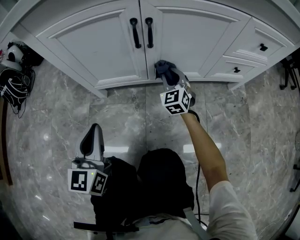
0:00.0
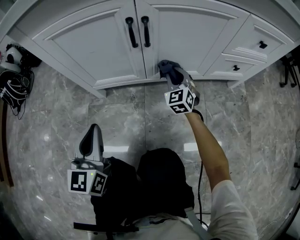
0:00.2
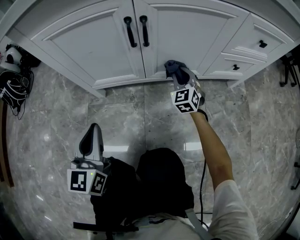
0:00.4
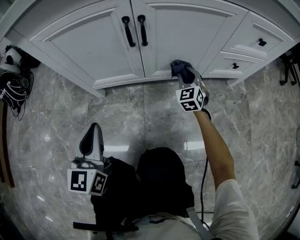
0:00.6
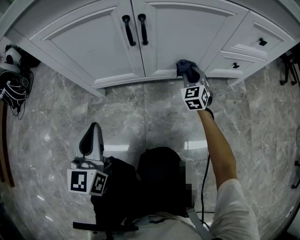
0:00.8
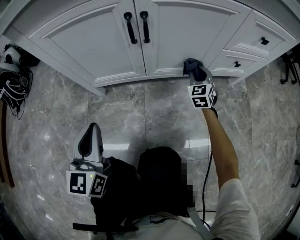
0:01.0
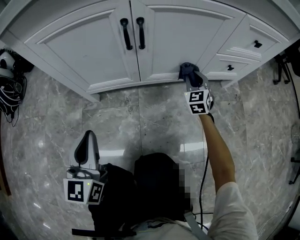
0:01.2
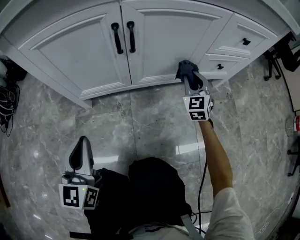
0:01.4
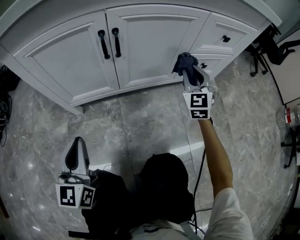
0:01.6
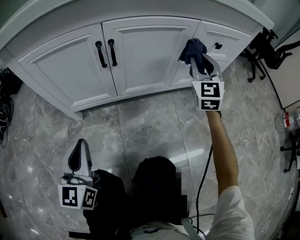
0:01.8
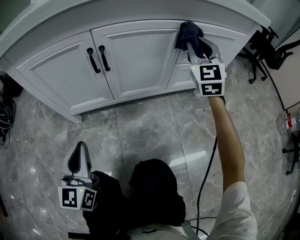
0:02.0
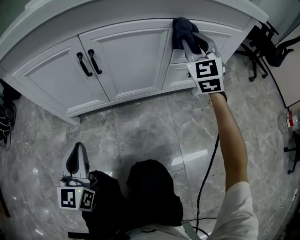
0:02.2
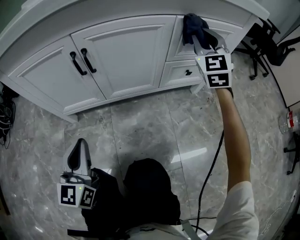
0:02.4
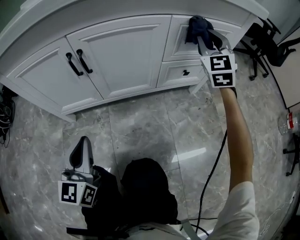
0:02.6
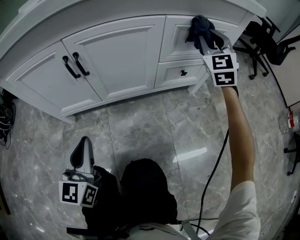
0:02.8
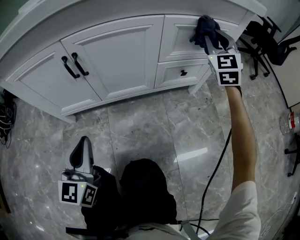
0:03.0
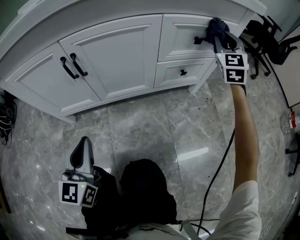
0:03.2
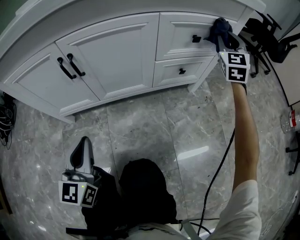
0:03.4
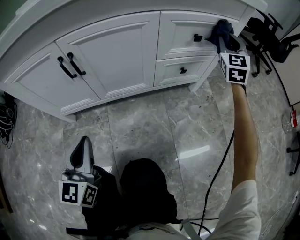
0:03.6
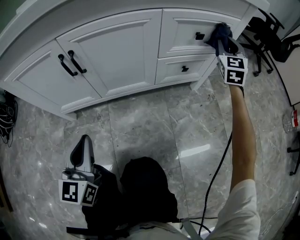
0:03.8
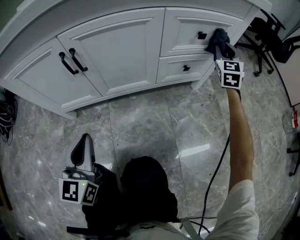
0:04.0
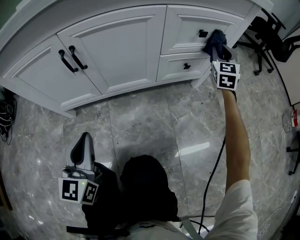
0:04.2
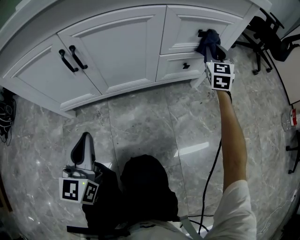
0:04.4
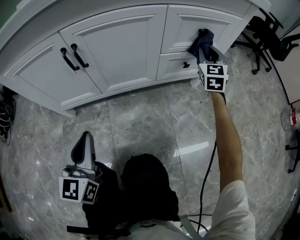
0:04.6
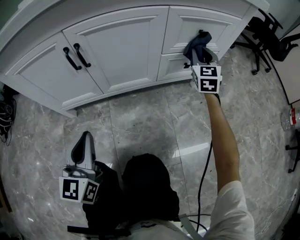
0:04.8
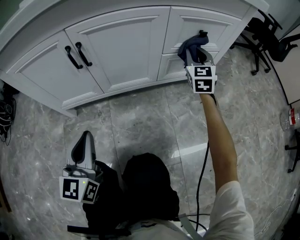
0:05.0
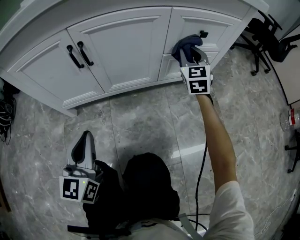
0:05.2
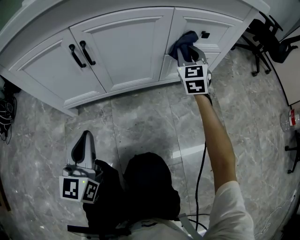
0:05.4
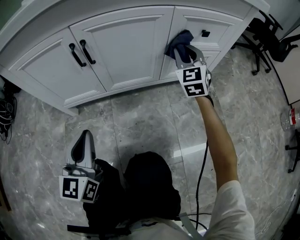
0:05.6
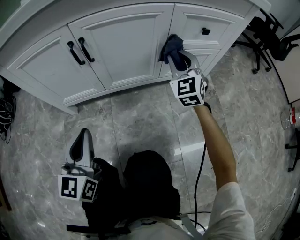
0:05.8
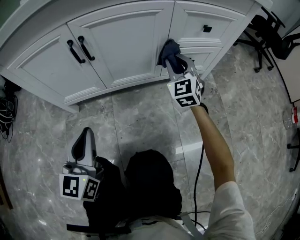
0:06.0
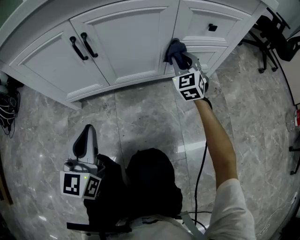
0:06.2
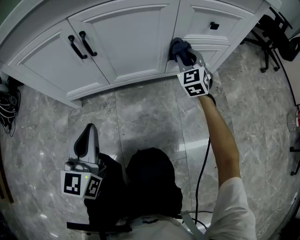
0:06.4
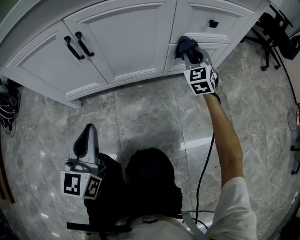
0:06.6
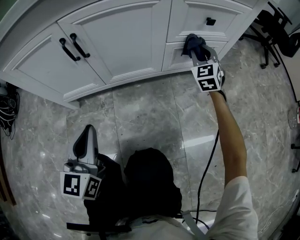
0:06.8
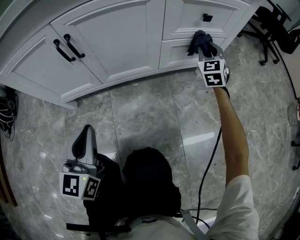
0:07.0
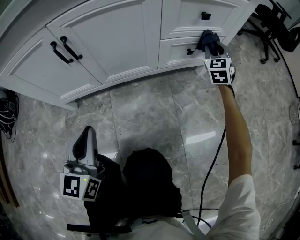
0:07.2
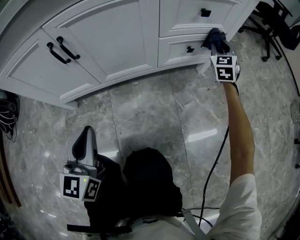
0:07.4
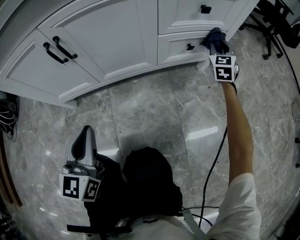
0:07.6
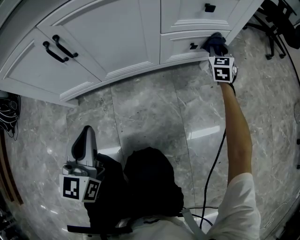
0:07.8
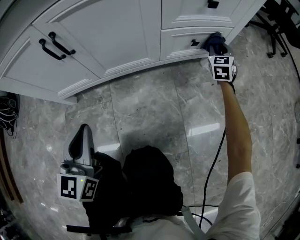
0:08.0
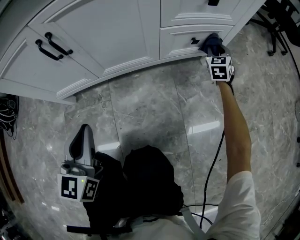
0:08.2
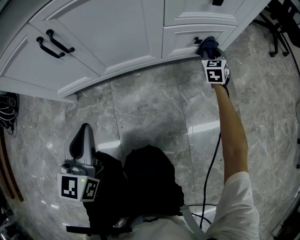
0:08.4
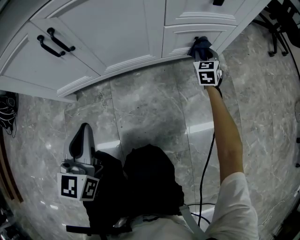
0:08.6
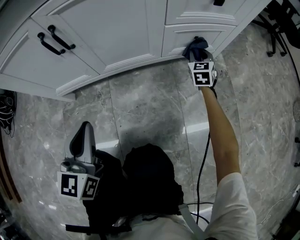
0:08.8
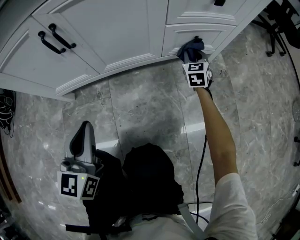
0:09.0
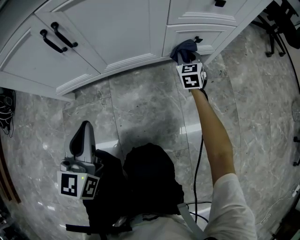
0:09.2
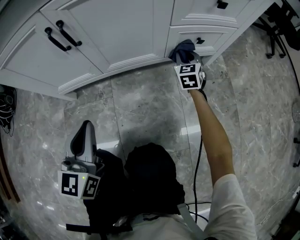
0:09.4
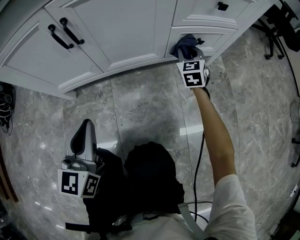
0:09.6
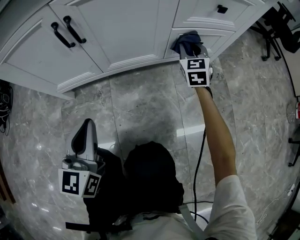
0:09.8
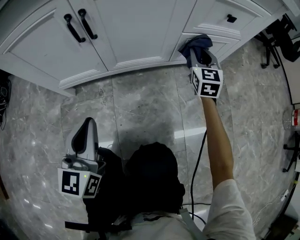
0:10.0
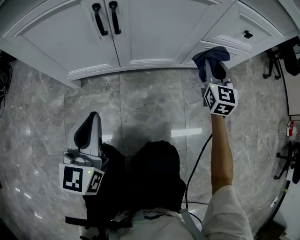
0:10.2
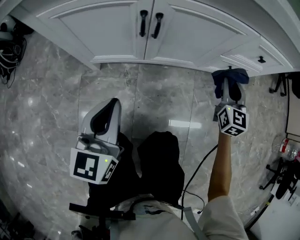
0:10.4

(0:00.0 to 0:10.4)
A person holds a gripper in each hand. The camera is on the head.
0:00.0 - 0:01.4: The right gripper moves to the right, about 15 cm.
0:01.4 - 0:03.0: The left gripper is displaced to the right by about 15 cm, while the right gripper heads upward and to the right, covering about 30 cm.
0:03.0 - 0:04.4: The right gripper shifts roughly 10 cm downward.
0:04.4 - 0:06.0: The right gripper heads to the left and backward, covering roughly 20 cm.
0:06.0 - 0:07.4: The right gripper heads to the right, covering roughly 20 cm, and changes its angle by some 20 degrees.
0:07.4 - 0:09.0: The right gripper shifts roughly 20 cm downward and to the left.
0:09.0 - 0:10.4: The left gripper moves upward and to the left, roughly 15 cm, while the right gripper heads upward and backward, covering roughly 25 cm.

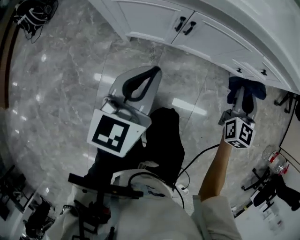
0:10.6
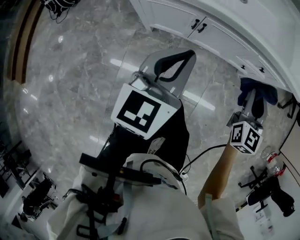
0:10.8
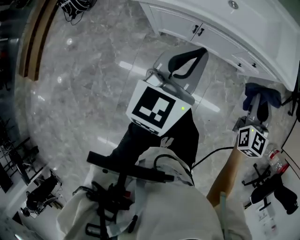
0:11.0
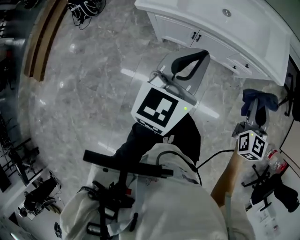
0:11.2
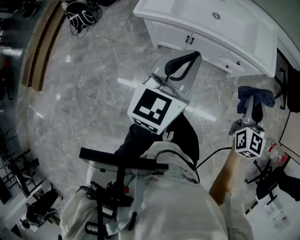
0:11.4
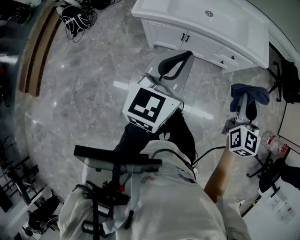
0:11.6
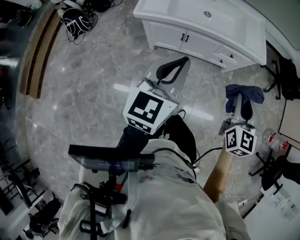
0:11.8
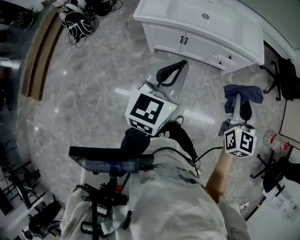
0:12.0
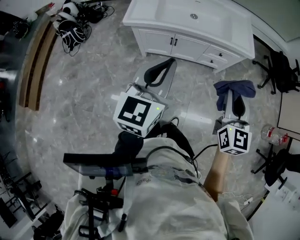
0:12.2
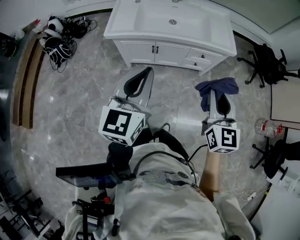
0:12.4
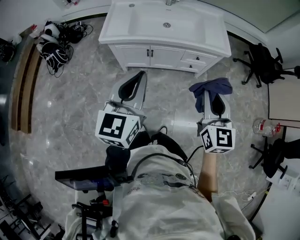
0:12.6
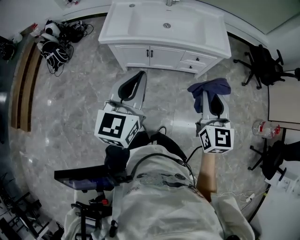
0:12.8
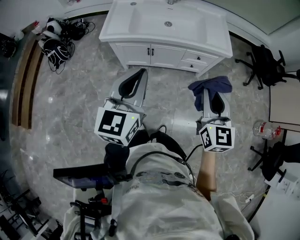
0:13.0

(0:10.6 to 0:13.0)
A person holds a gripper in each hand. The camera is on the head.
0:10.6 - 0:11.8: The left gripper is displaced upward by roughly 50 cm. Meanwhile the right gripper heads upward and backward, covering some 60 cm.
0:11.8 - 0:13.0: The left gripper goes approximately 5 cm to the right.

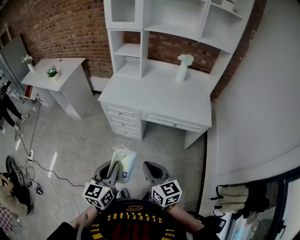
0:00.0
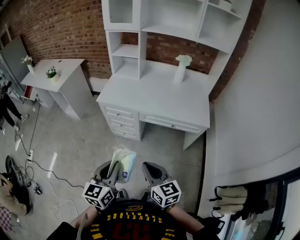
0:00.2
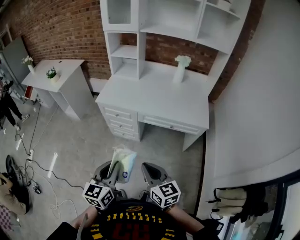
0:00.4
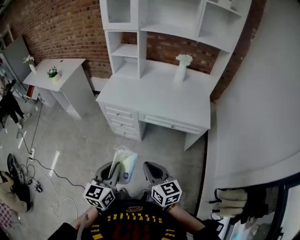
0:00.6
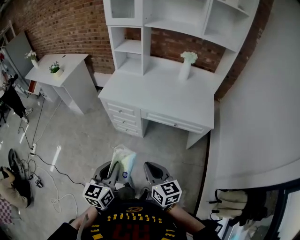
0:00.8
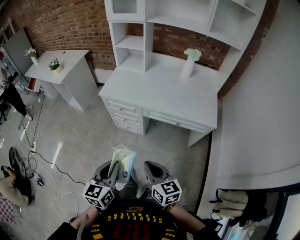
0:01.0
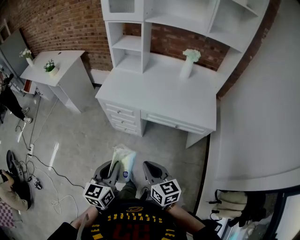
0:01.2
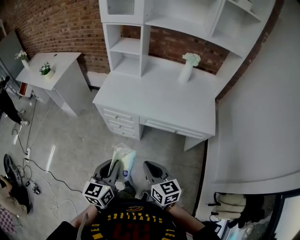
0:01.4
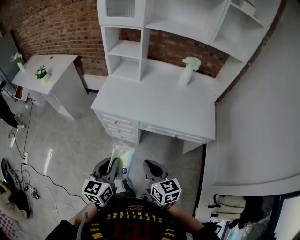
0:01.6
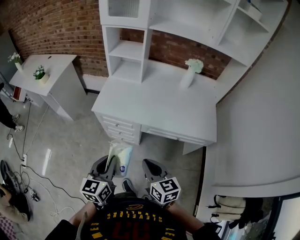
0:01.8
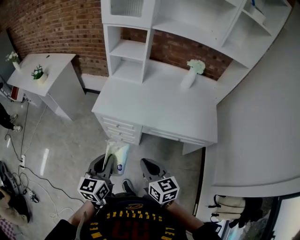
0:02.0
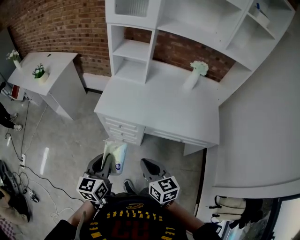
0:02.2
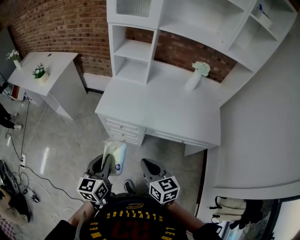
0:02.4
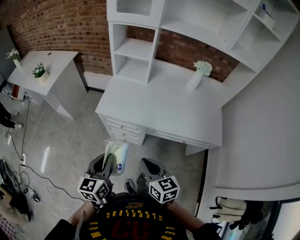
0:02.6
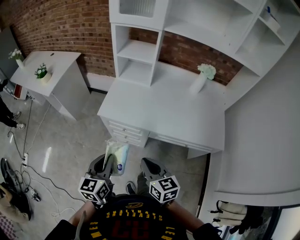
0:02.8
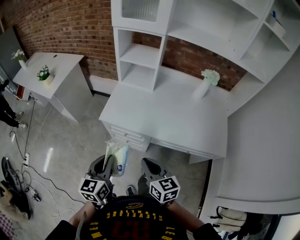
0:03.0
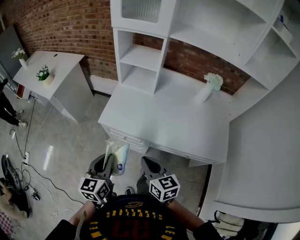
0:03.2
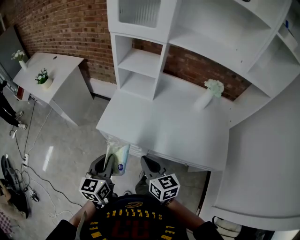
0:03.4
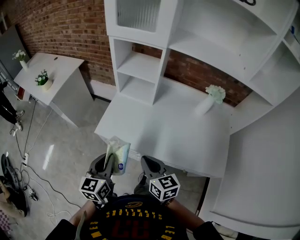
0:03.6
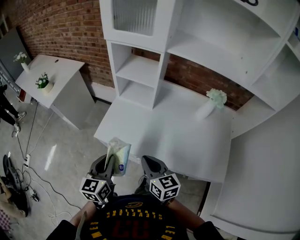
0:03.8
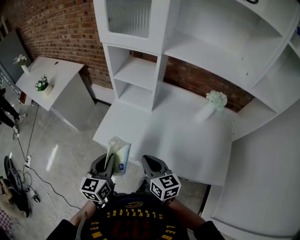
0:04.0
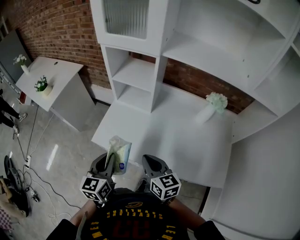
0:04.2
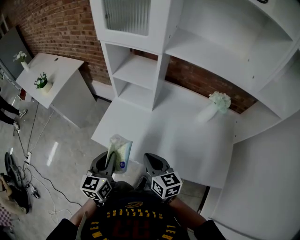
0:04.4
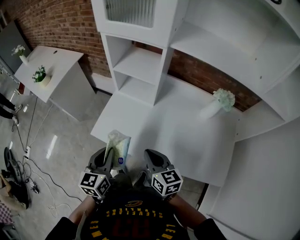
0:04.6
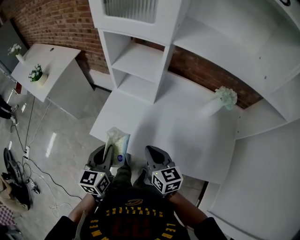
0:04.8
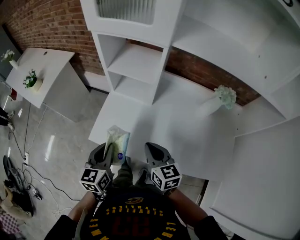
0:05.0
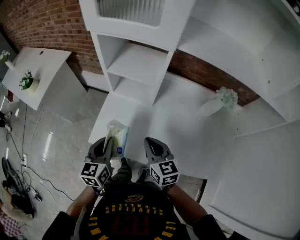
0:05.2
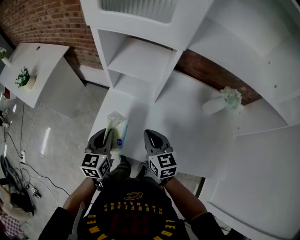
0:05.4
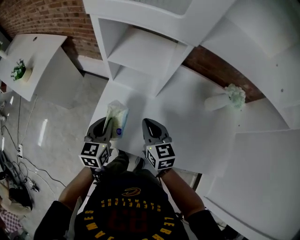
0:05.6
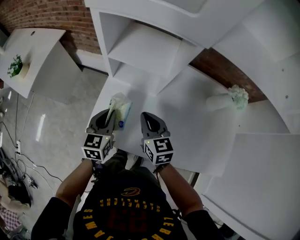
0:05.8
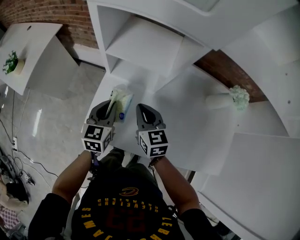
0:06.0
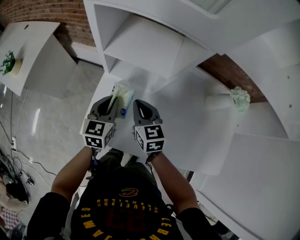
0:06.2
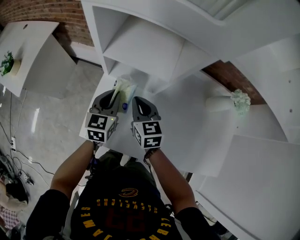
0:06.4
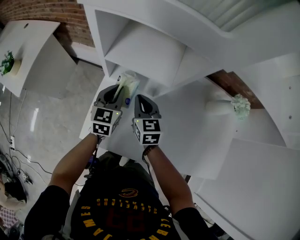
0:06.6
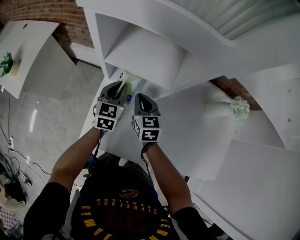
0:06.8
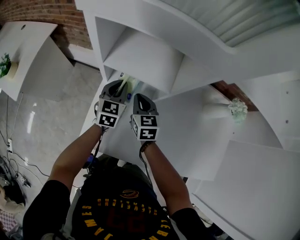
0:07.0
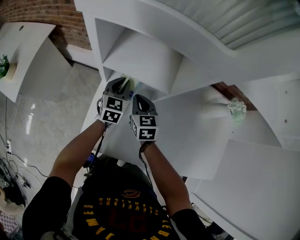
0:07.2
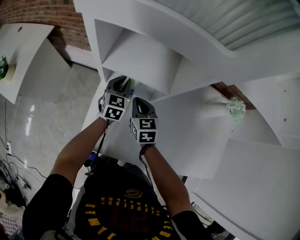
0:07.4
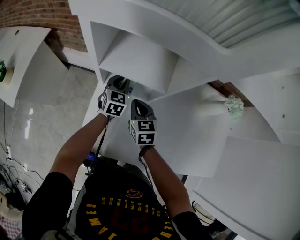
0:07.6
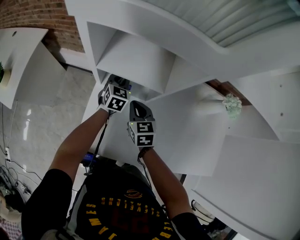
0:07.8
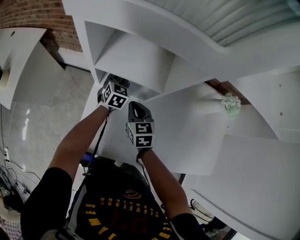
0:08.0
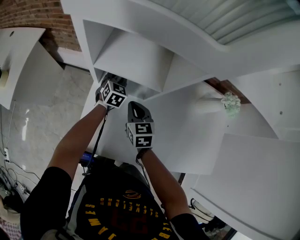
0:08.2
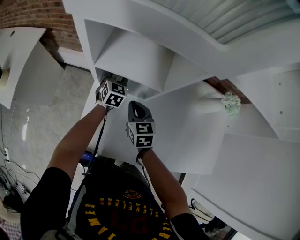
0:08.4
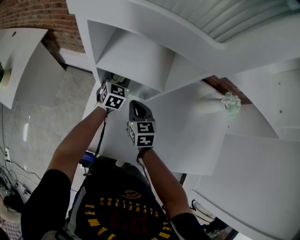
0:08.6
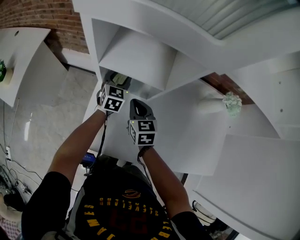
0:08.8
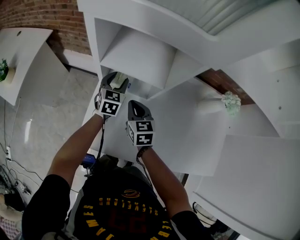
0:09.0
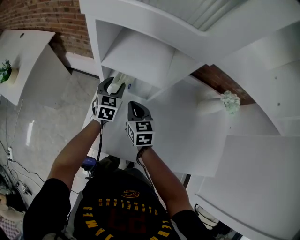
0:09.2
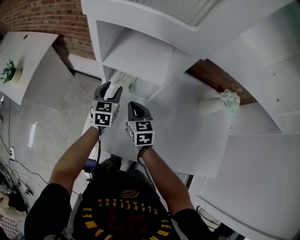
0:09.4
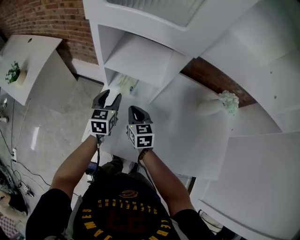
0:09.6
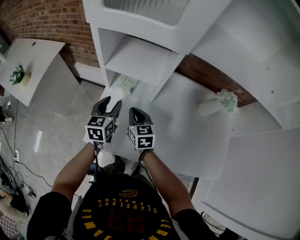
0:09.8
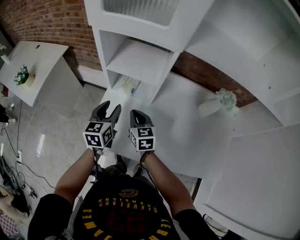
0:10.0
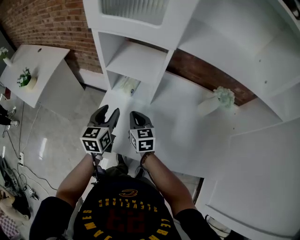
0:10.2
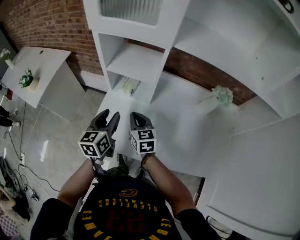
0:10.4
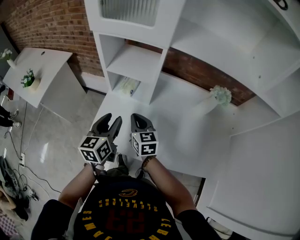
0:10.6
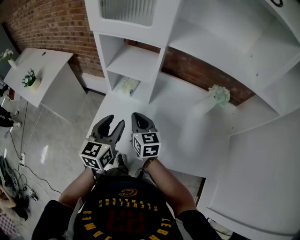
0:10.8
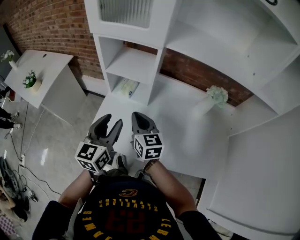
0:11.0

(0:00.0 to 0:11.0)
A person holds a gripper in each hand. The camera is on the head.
0:00.0 - 0:01.6: Both grippers travel together forward, some 15 cm.
0:01.6 - 0:03.2: The left gripper moves forward and to the left, about 20 cm; the right gripper travels forward by approximately 20 cm.
0:03.2 - 0:04.8: Both grippers move forward and to the right, about 20 cm.
0:04.8 - 0:06.2: Both grippers move forward, about 25 cm.
0:06.2 - 0:07.8: The left gripper travels forward by roughly 20 cm; the right gripper moves forward and downward, some 10 cm.
0:07.8 - 0:09.4: The left gripper heads backward, to the left and upward, covering roughly 10 cm, and opens up.
0:09.4 - 0:11.0: The right gripper shifts about 20 cm upward and backward; the left gripper is displaced backward and upward by about 30 cm, and turns by some 20 degrees.
